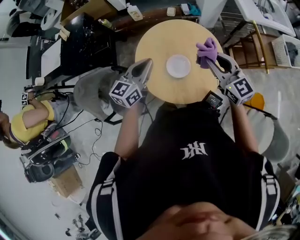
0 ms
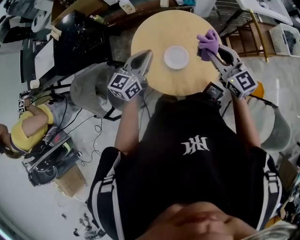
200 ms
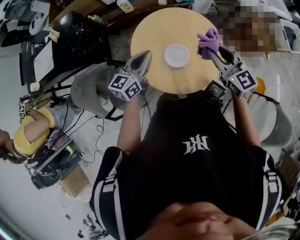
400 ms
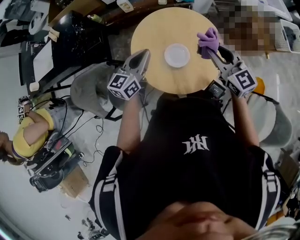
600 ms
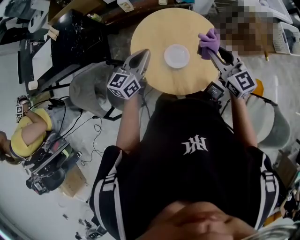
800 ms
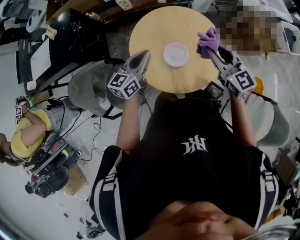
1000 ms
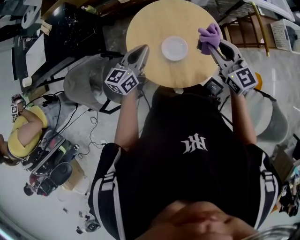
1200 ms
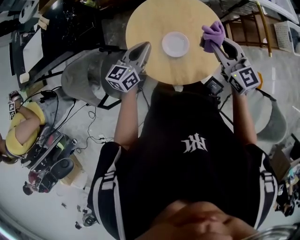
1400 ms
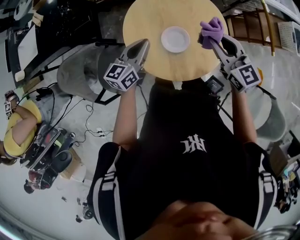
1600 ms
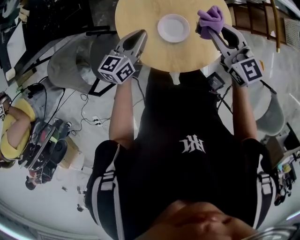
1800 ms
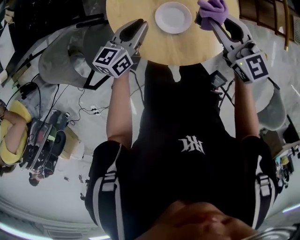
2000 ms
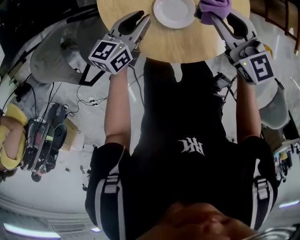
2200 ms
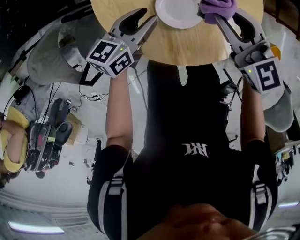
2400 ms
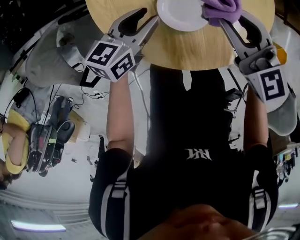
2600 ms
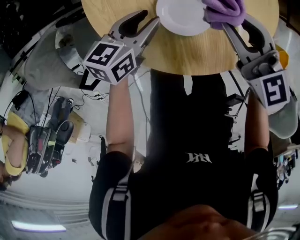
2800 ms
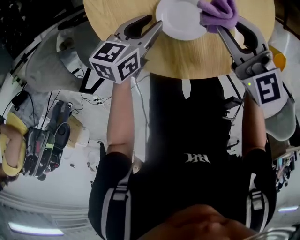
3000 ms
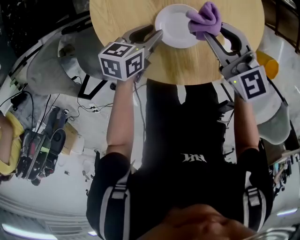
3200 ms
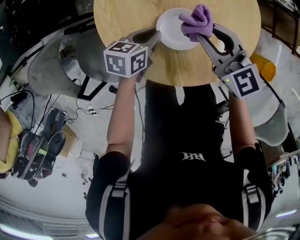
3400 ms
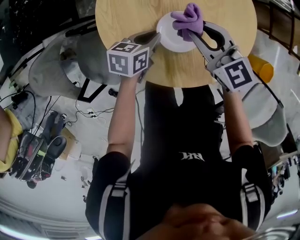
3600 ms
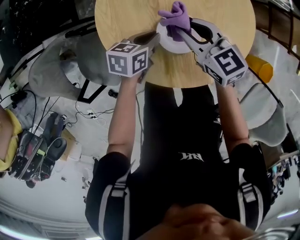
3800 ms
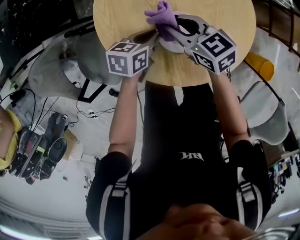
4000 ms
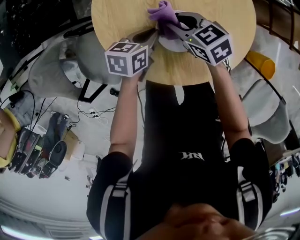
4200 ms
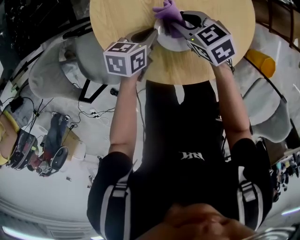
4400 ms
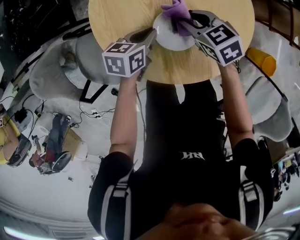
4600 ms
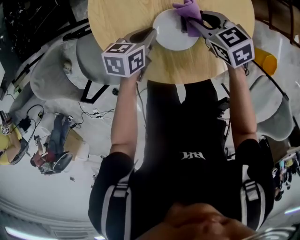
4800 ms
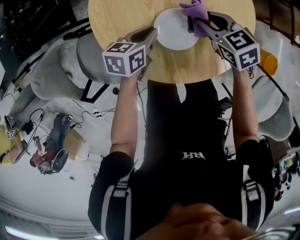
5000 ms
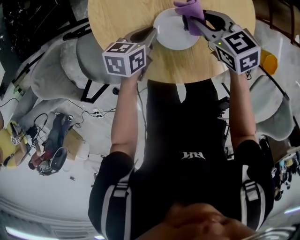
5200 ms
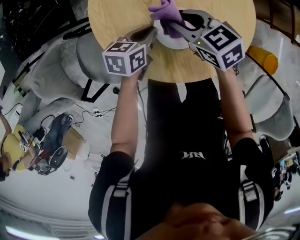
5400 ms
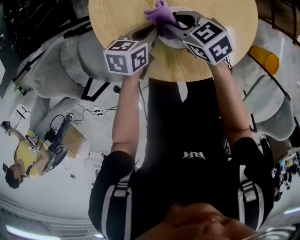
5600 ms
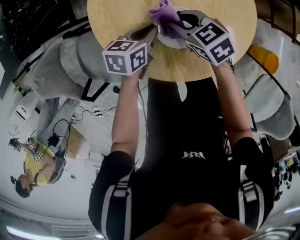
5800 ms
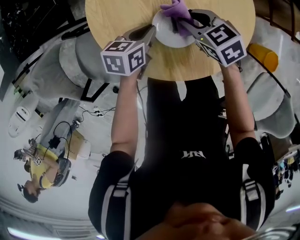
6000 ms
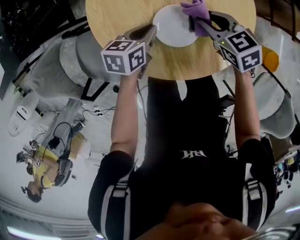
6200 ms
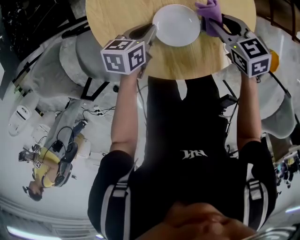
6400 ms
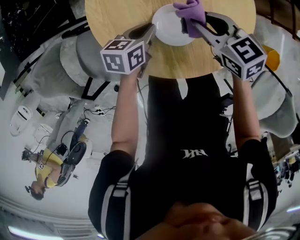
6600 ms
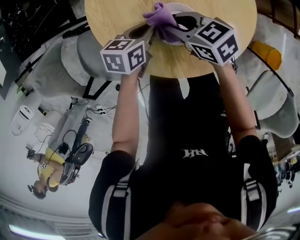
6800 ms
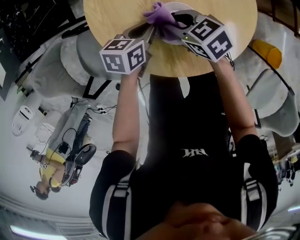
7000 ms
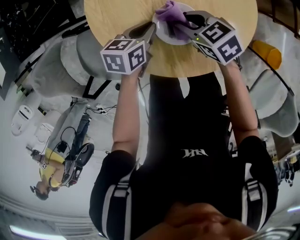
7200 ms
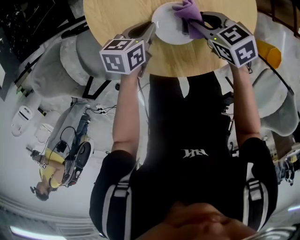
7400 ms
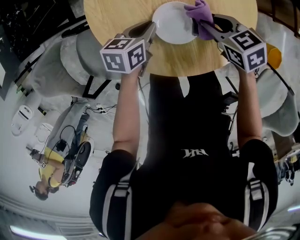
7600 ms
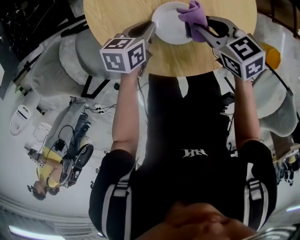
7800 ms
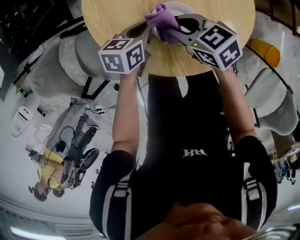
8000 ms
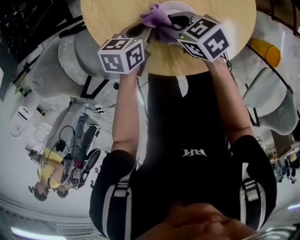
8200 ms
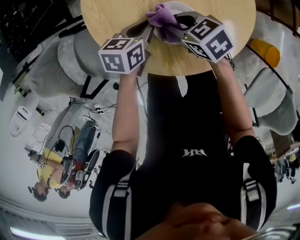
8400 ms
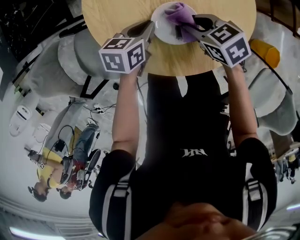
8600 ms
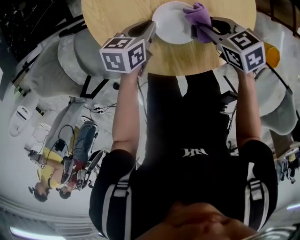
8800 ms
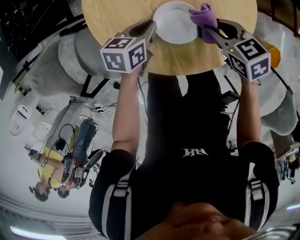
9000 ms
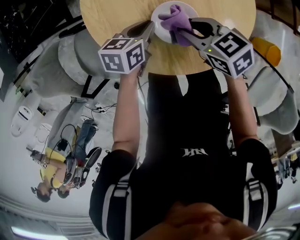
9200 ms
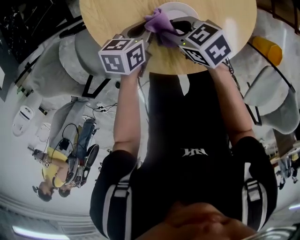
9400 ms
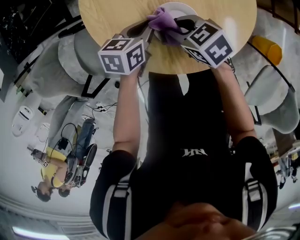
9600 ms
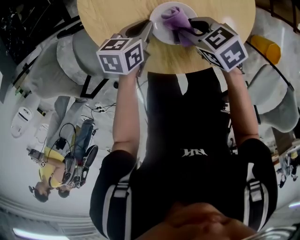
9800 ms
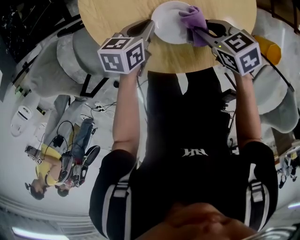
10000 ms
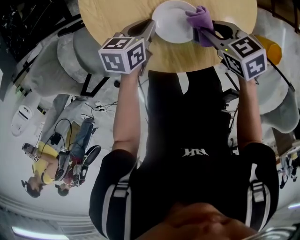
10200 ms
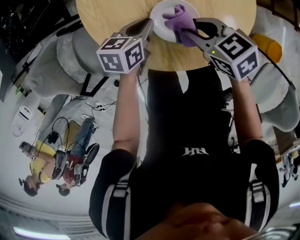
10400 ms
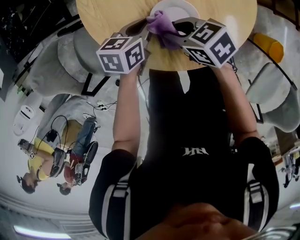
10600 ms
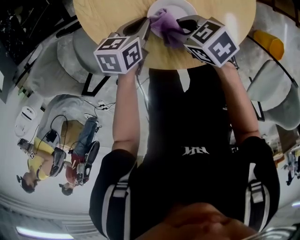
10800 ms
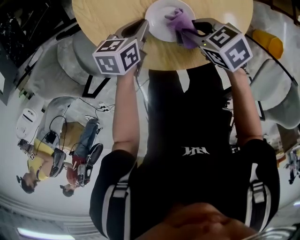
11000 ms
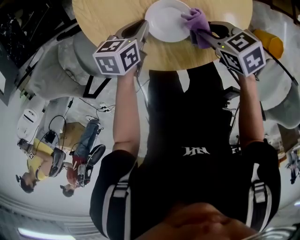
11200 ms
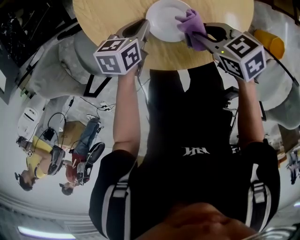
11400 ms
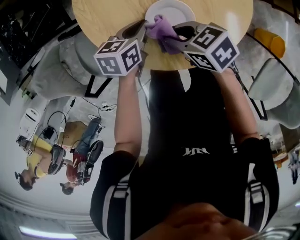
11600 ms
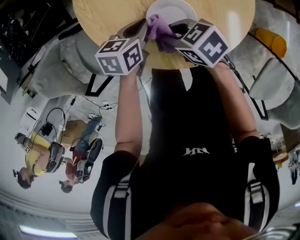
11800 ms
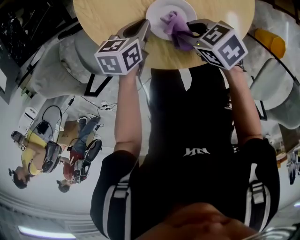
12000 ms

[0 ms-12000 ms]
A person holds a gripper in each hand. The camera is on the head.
0 ms to 1600 ms: The left gripper is displaced downward by approximately 10 cm. The right gripper heads downward, covering roughly 5 cm.
1600 ms to 3000 ms: Both grippers move downward, approximately 15 cm. The left gripper swivels approximately 30 degrees, and opens.
3000 ms to 4400 ms: The left gripper closes up. The right gripper goes some 10 cm downward and to the left, and turns by about 30 degrees.
4400 ms to 6000 ms: The right gripper goes left and right, roughly 10 cm each way, reversing 2 times.
6000 ms to 7600 ms: The right gripper shifts by roughly 5 cm.

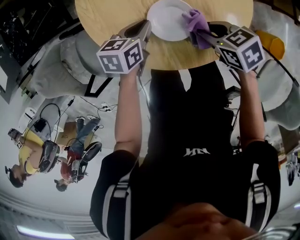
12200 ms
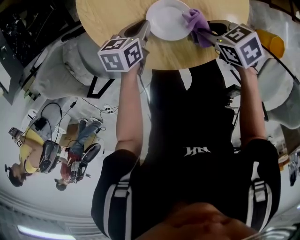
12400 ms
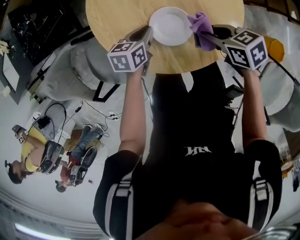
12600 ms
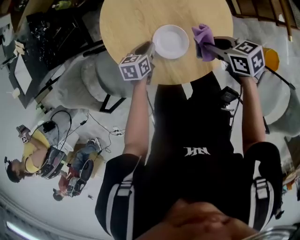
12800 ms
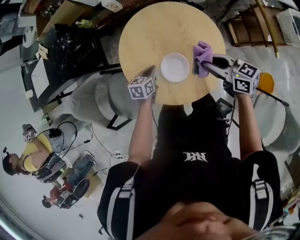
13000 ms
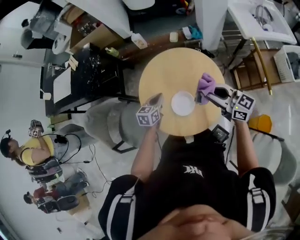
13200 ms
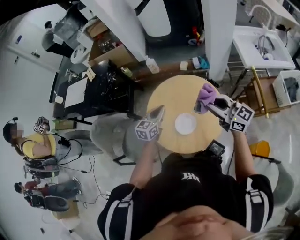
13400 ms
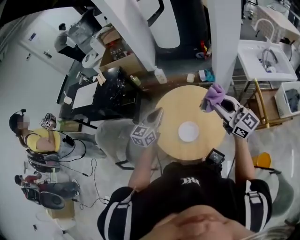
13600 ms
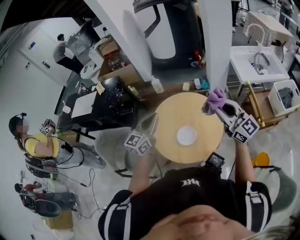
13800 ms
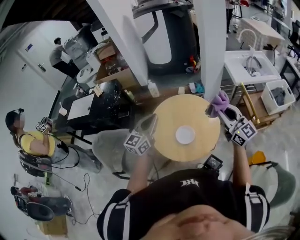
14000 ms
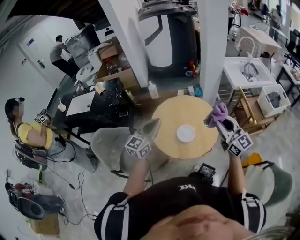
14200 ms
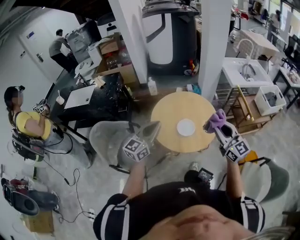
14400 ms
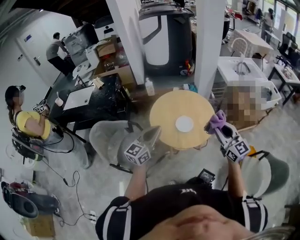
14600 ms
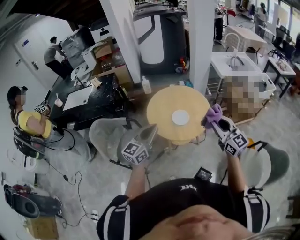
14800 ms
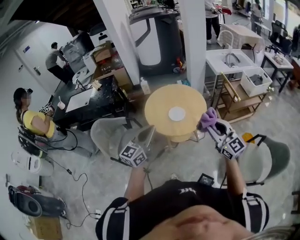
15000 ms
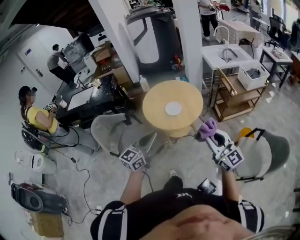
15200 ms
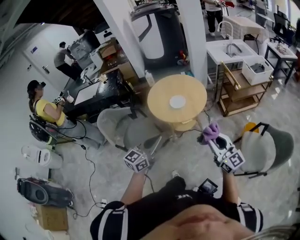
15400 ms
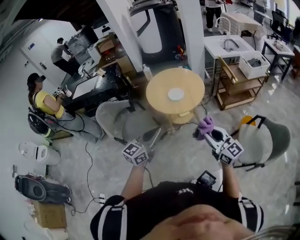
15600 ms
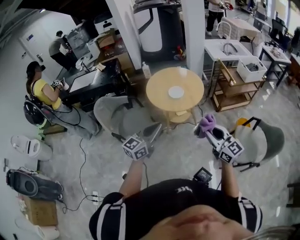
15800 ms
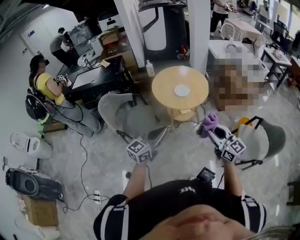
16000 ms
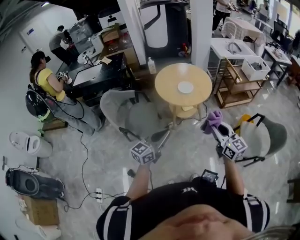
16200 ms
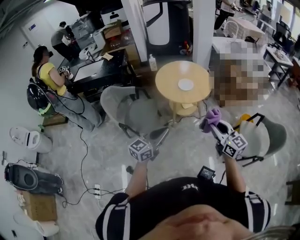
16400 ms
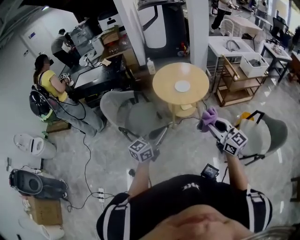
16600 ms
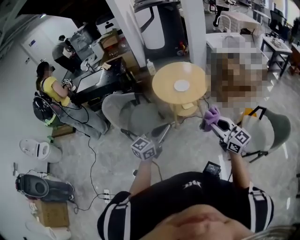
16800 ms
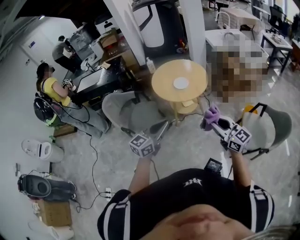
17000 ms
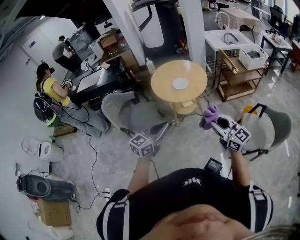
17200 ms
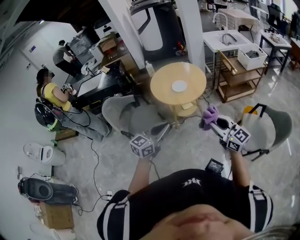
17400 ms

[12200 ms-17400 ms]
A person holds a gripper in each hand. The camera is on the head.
12200 ms to 14000 ms: The grippers both shift upward by approximately 40 cm. The left gripper points its fingers approximately 50 degrees further upward; the right gripper points its fingers roughly 60 degrees further upward.
14000 ms to 15600 ms: Both grippers are carried backward, roughly 50 cm.
15600 ms to 17400 ms: Both grippers travel together backward, roughly 5 cm. The left gripper travels to the left and back again, roughly 10 cm each way. Meanwhile the right gripper moves approximately 10 cm to the left and comes back.

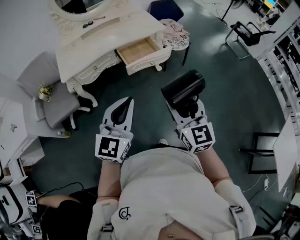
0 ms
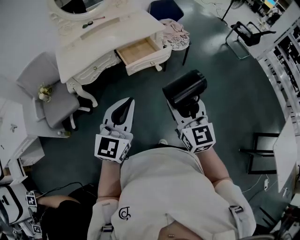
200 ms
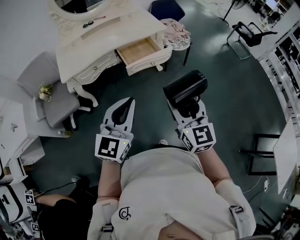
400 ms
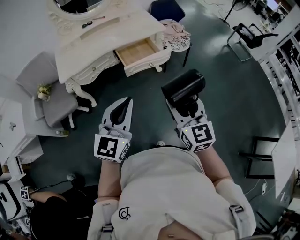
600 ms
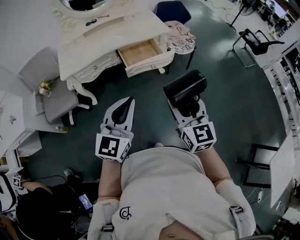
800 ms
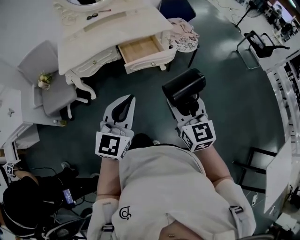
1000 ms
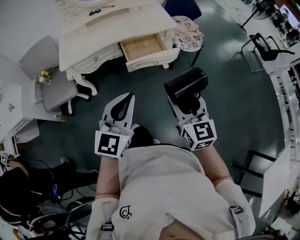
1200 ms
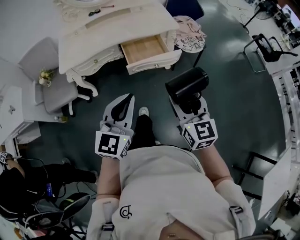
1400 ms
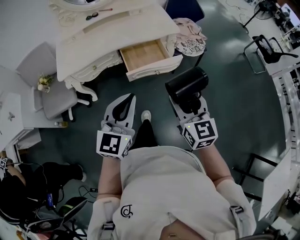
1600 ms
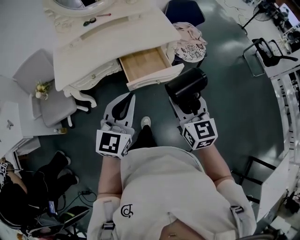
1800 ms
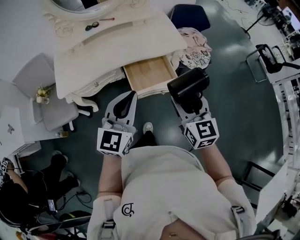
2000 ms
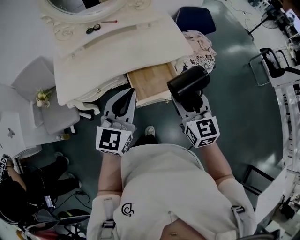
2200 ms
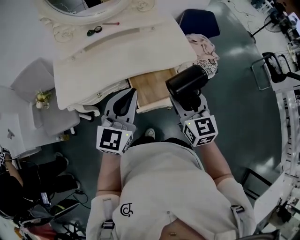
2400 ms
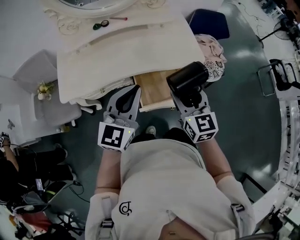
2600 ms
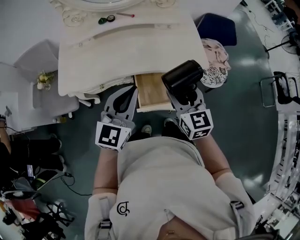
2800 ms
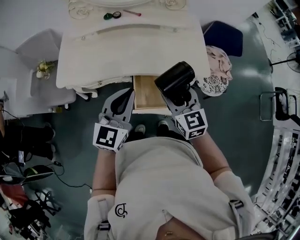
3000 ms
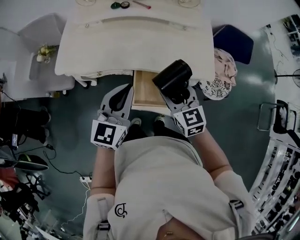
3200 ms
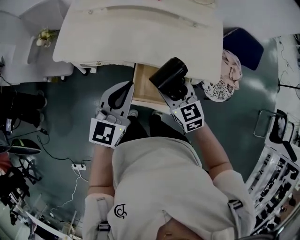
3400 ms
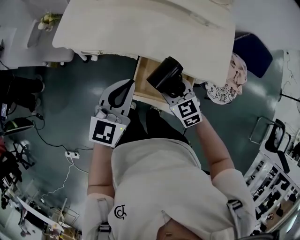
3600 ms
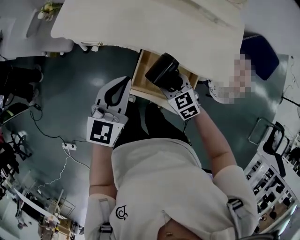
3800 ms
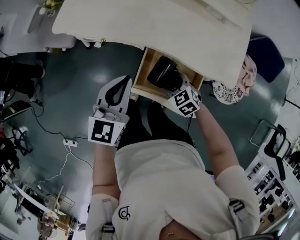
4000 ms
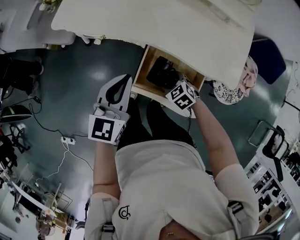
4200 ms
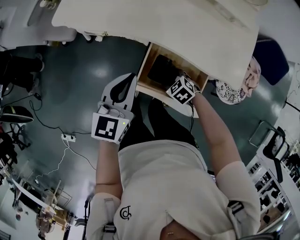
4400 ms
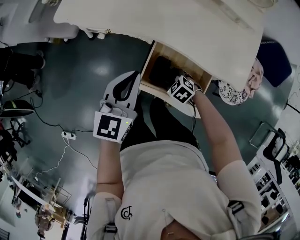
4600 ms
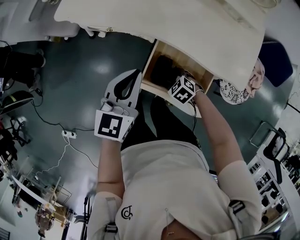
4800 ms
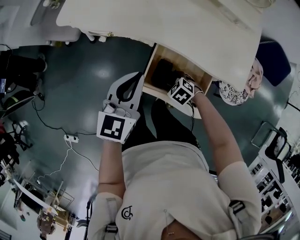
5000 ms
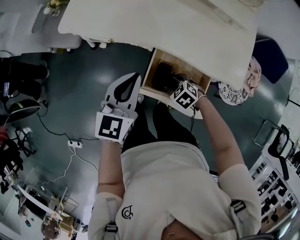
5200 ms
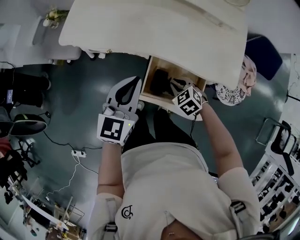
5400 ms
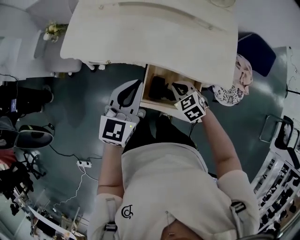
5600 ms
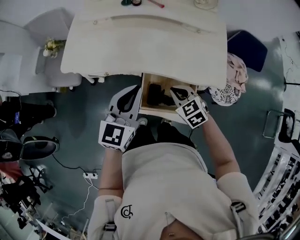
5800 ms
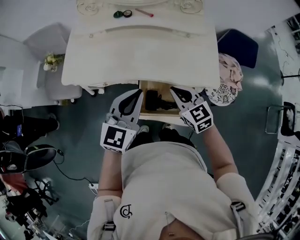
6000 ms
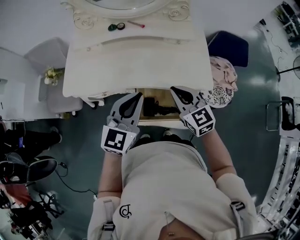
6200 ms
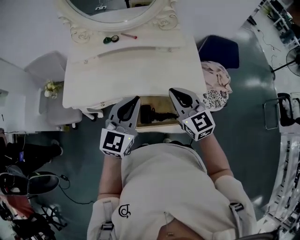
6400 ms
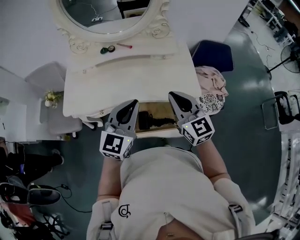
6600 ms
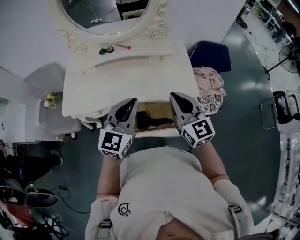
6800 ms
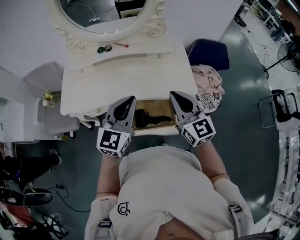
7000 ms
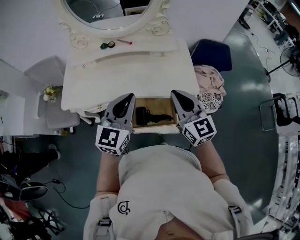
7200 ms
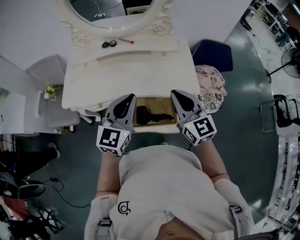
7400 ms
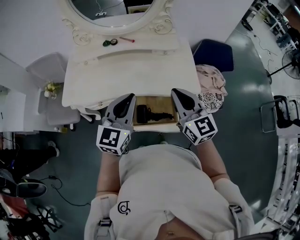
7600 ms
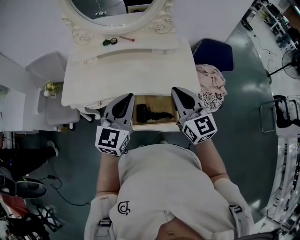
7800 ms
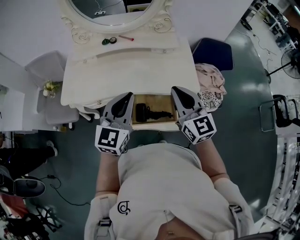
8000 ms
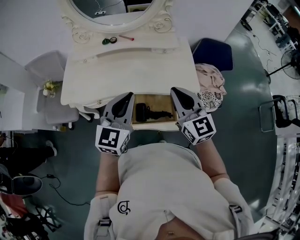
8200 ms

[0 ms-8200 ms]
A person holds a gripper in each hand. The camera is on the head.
0 ms to 1600 ms: Both grippers move forward, some 15 cm.
1600 ms to 3200 ms: The right gripper moves about 40 cm, and swivels roughly 40 degrees. The left gripper changes place by roughly 35 cm, and changes its angle by approximately 20 degrees.
3200 ms to 5000 ms: The left gripper heads downward, covering some 10 cm; the right gripper travels downward by roughly 30 cm, and angles its fingers downward, by about 50 degrees.
5000 ms to 6600 ms: The right gripper moves upward, some 40 cm, angles its fingers upward, by some 70 degrees, and closes up. The left gripper moves upward, about 15 cm, and swivels approximately 30 degrees.
6600 ms to 8200 ms: The grippers stay close to where they were, moving slightly.
